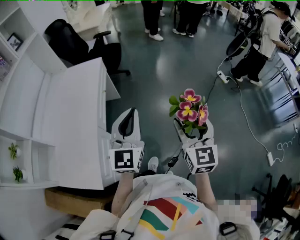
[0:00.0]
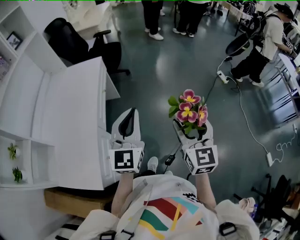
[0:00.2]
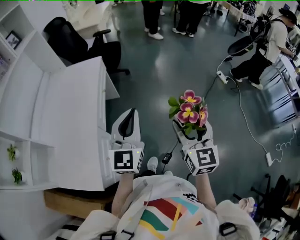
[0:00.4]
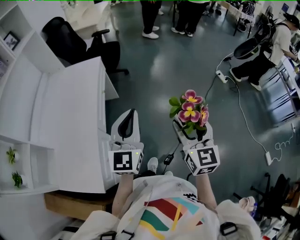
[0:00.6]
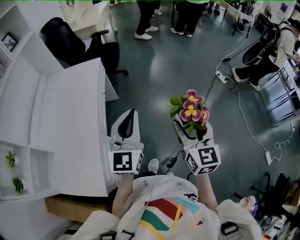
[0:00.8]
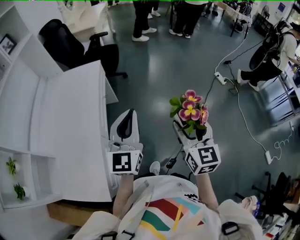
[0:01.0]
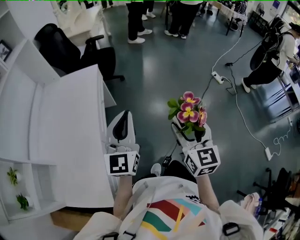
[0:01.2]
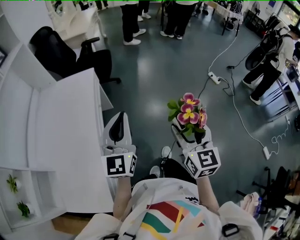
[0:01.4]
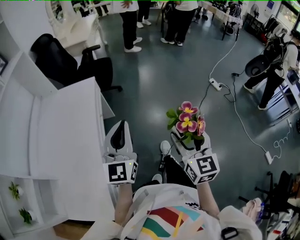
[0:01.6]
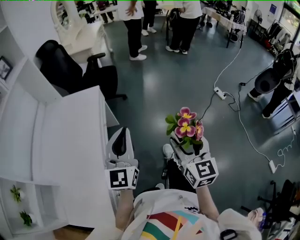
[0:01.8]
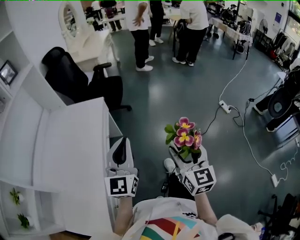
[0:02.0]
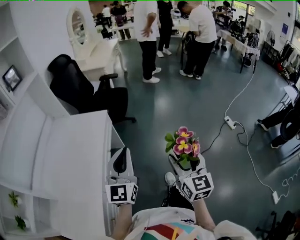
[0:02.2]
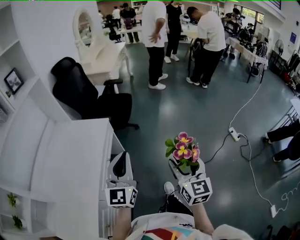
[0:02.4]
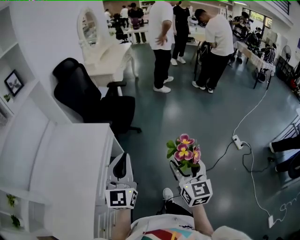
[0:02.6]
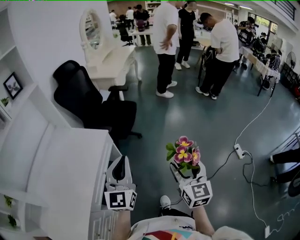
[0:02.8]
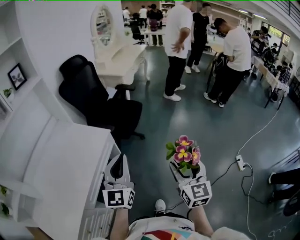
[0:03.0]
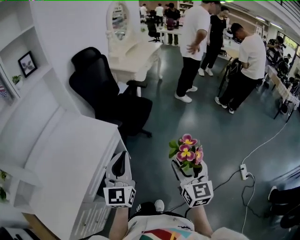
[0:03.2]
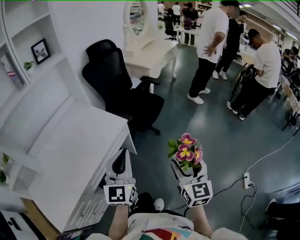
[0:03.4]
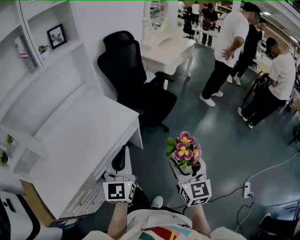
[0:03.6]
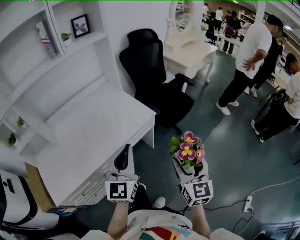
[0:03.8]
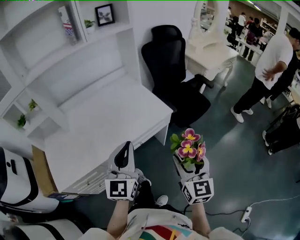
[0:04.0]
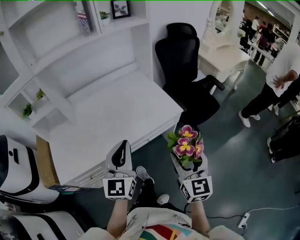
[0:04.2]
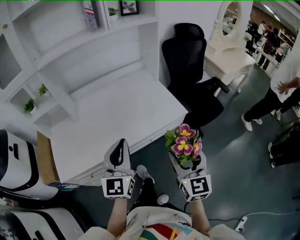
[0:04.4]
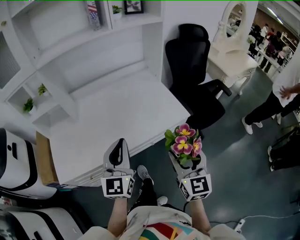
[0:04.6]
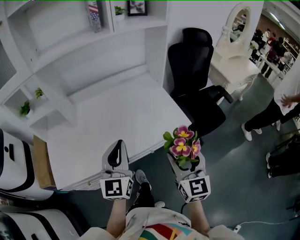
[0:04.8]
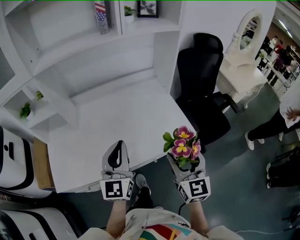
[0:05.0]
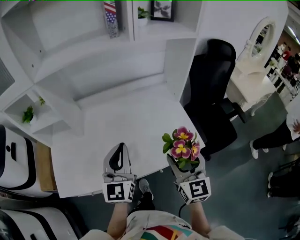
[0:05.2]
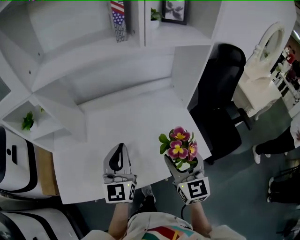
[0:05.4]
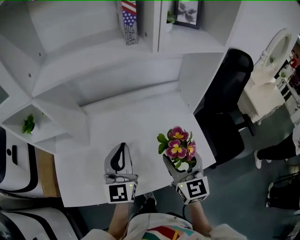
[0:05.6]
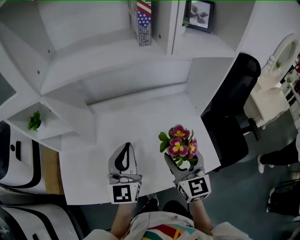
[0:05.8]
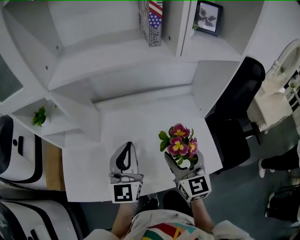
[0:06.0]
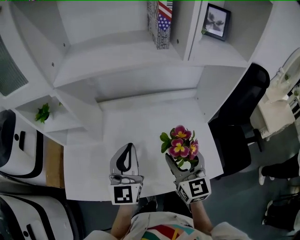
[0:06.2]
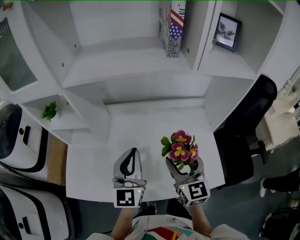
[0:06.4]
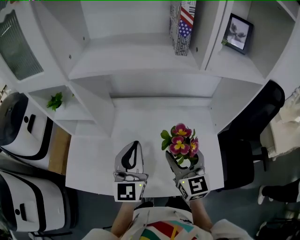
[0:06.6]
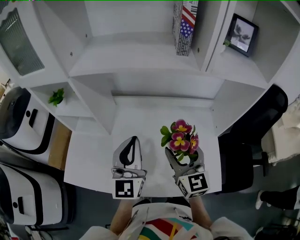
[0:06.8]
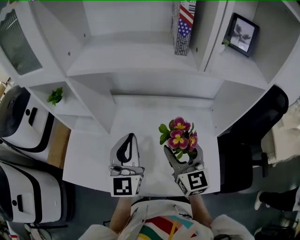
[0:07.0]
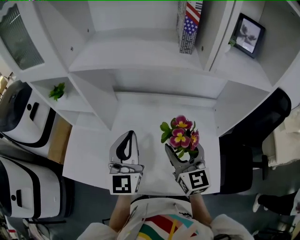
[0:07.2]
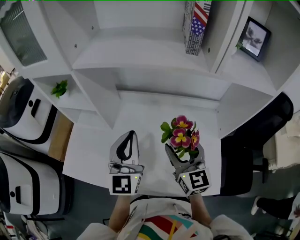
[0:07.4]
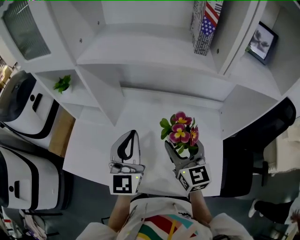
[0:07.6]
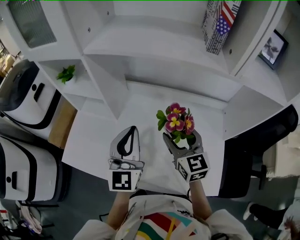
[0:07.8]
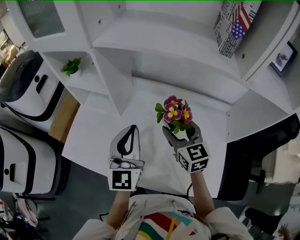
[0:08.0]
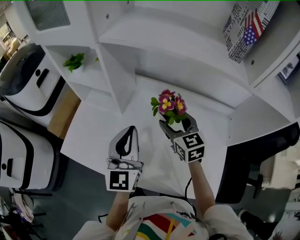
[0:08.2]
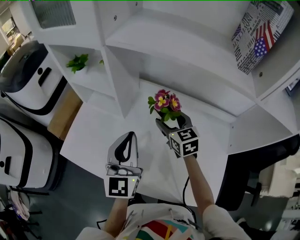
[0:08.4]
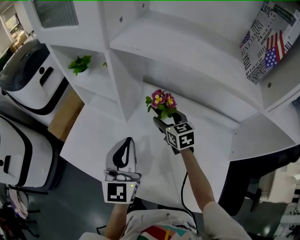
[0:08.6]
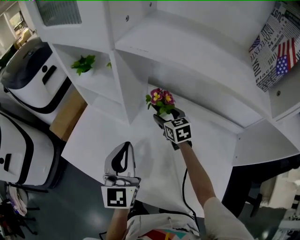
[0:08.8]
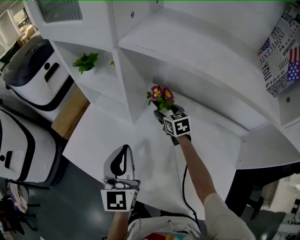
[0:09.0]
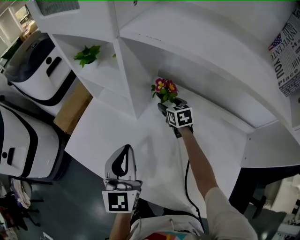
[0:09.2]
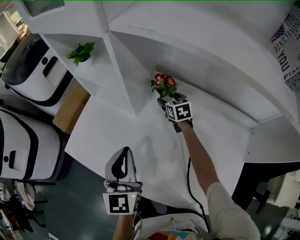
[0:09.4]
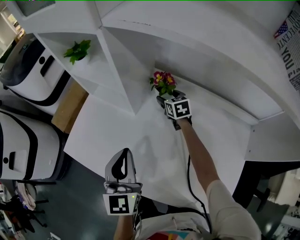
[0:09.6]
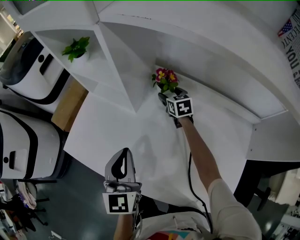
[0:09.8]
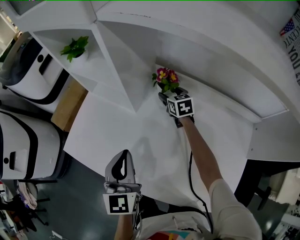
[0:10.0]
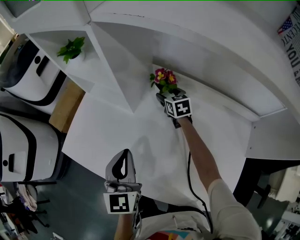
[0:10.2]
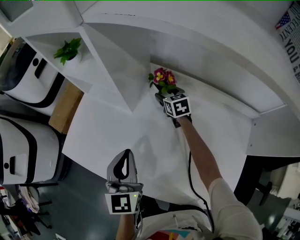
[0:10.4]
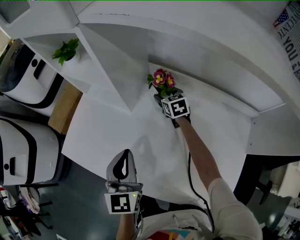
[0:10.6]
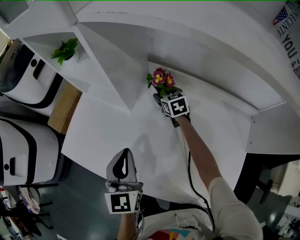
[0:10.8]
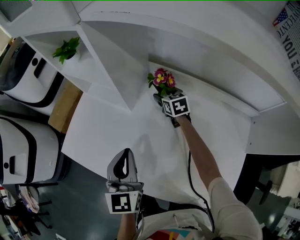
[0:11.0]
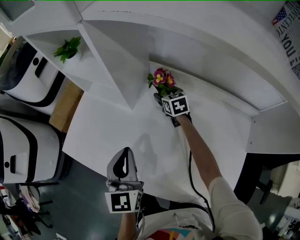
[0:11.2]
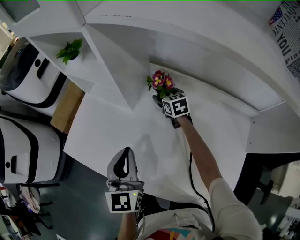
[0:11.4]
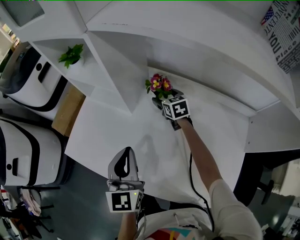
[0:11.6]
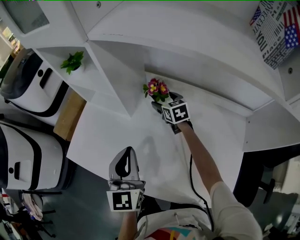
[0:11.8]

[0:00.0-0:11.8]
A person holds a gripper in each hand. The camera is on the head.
0:00.0 to 0:01.4: Both grippers travel together forward and to the left, roughly 10 cm.
0:01.4 to 0:03.0: Both grippers move forward, some 35 cm. The right gripper swivels some 20 degrees, while the left gripper changes its angle by some 30 degrees.
0:03.0 to 0:04.4: The left gripper ends up approximately 25 cm from where it was, and rotates roughly 50 degrees. The right gripper shifts by some 25 cm, and turns by some 50 degrees.
0:04.4 to 0:06.0: The grippers both shift forward and to the left by some 35 cm. The right gripper rotates roughly 20 degrees.
0:06.0 to 0:07.4: The right gripper goes about 10 cm forward.
0:07.4 to 0:08.8: The left gripper goes about 10 cm to the left and downward. Meanwhile the right gripper moves forward, downward and to the left, approximately 35 cm, and turns by roughly 40 degrees.
0:08.8 to 0:10.4: The left gripper goes approximately 10 cm downward. The right gripper shifts approximately 15 cm downward and forward.
0:10.4 to 0:11.8: The right gripper travels upward by approximately 5 cm.

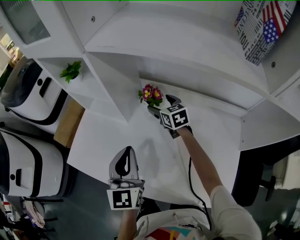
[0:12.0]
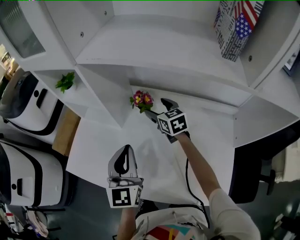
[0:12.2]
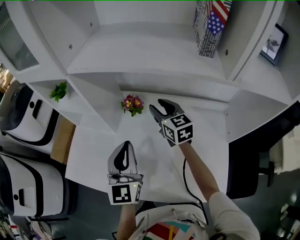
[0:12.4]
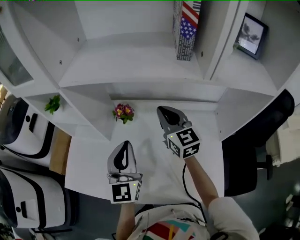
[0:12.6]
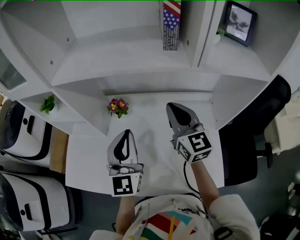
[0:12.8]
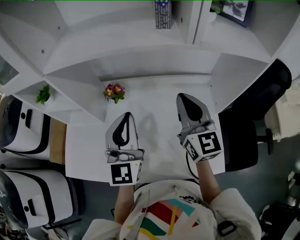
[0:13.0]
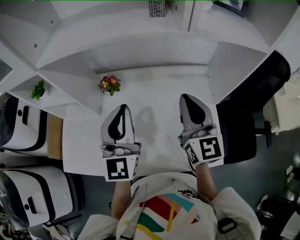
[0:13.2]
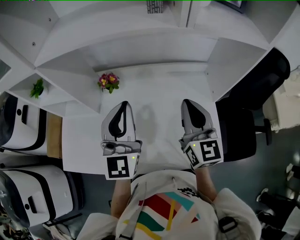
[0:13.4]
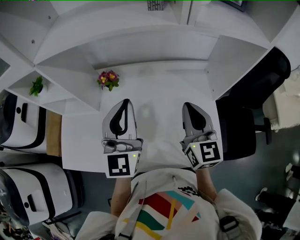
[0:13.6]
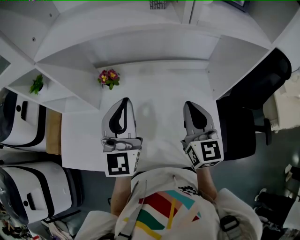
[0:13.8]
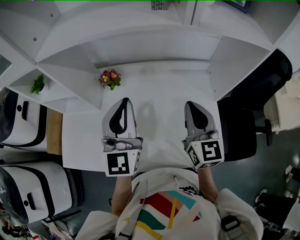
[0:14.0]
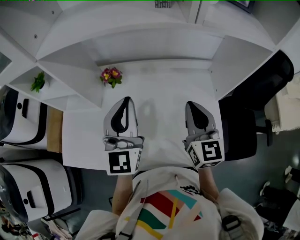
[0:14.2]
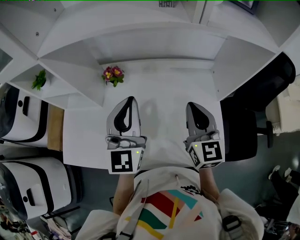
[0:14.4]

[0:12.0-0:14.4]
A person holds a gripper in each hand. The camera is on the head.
0:12.0 to 0:13.2: The right gripper shifts by roughly 40 cm, points its fingers some 30 degrees further upward, and closes up. Meanwhile the left gripper shifts by roughly 20 cm, and rotates about 30 degrees.
0:13.2 to 0:14.4: The right gripper shifts about 5 cm downward.

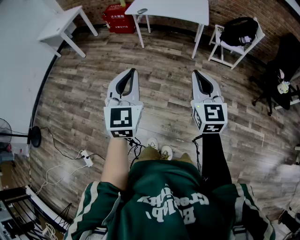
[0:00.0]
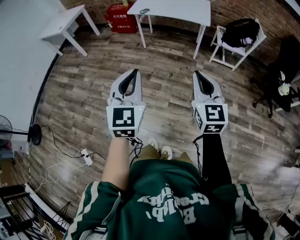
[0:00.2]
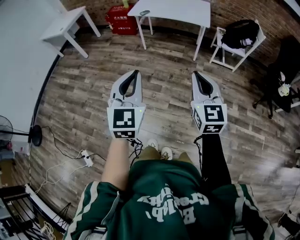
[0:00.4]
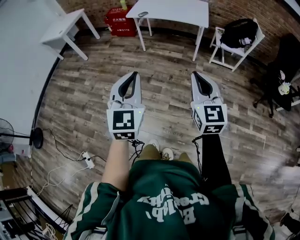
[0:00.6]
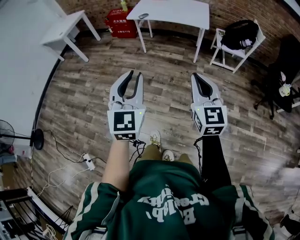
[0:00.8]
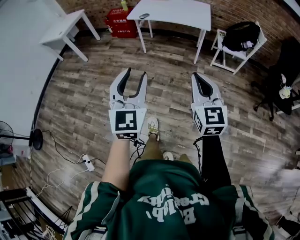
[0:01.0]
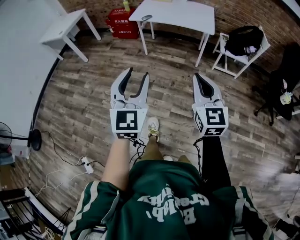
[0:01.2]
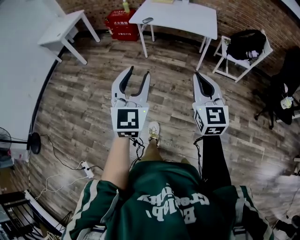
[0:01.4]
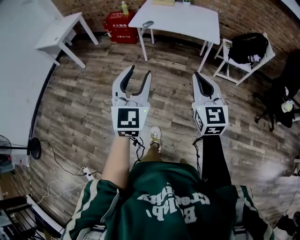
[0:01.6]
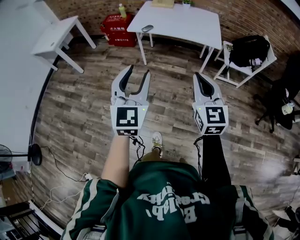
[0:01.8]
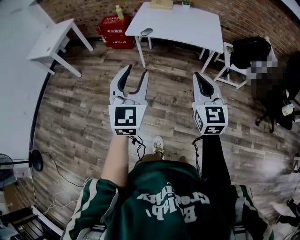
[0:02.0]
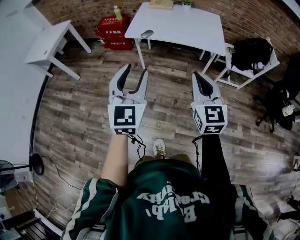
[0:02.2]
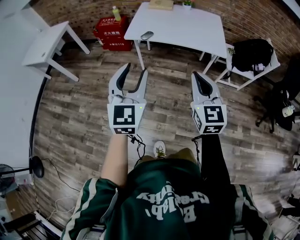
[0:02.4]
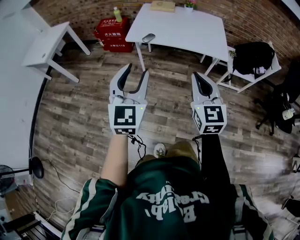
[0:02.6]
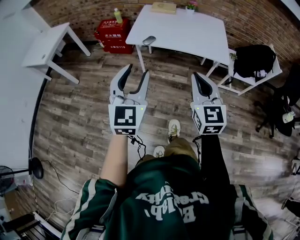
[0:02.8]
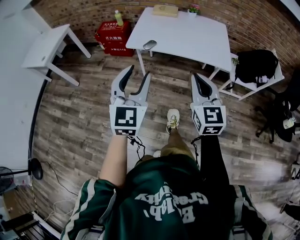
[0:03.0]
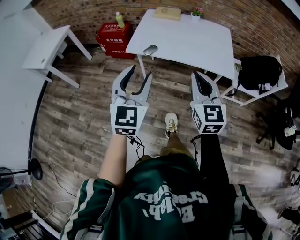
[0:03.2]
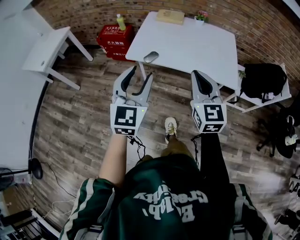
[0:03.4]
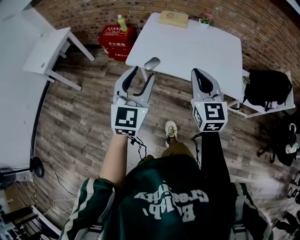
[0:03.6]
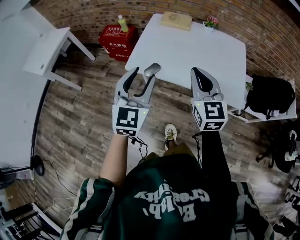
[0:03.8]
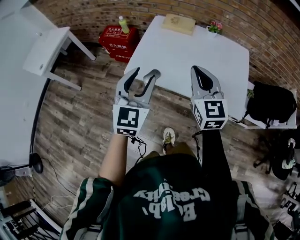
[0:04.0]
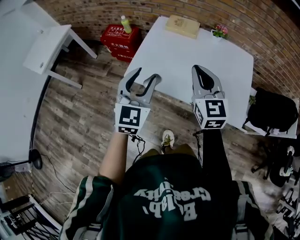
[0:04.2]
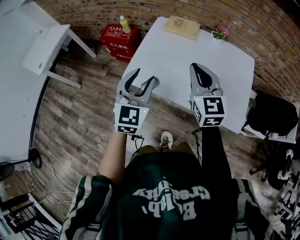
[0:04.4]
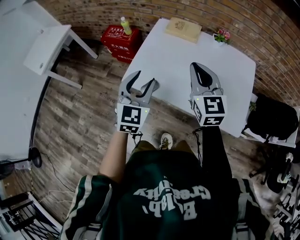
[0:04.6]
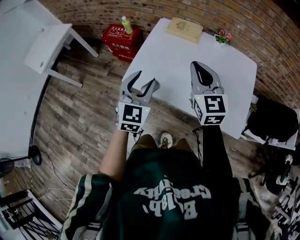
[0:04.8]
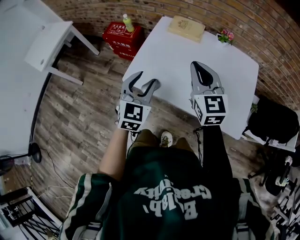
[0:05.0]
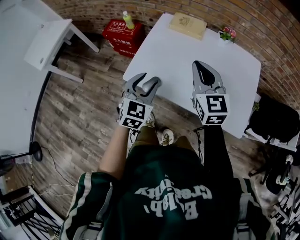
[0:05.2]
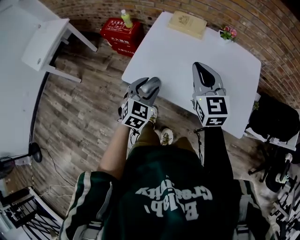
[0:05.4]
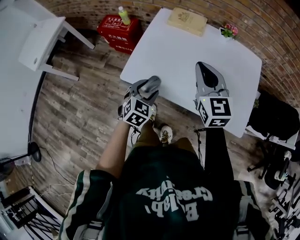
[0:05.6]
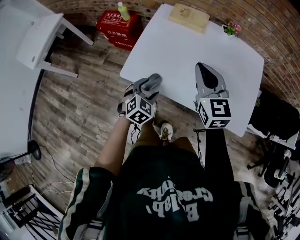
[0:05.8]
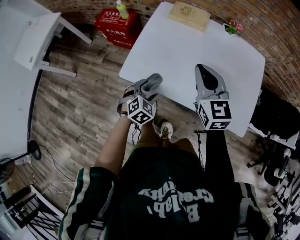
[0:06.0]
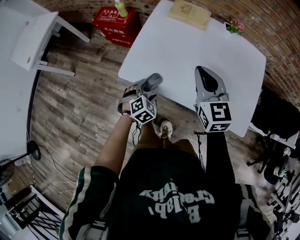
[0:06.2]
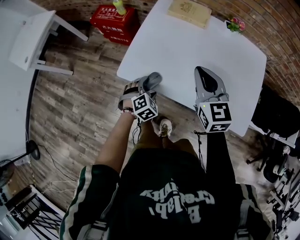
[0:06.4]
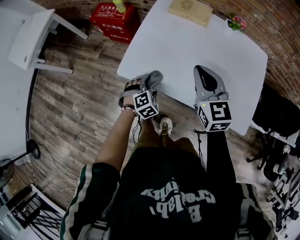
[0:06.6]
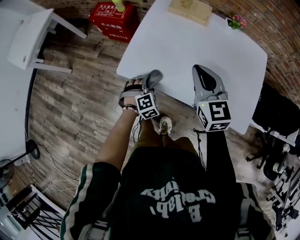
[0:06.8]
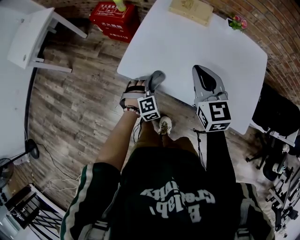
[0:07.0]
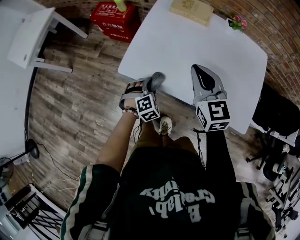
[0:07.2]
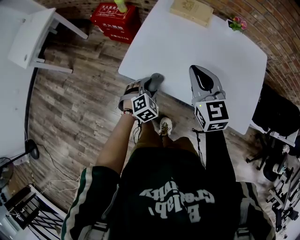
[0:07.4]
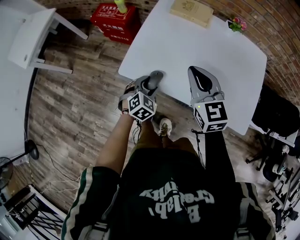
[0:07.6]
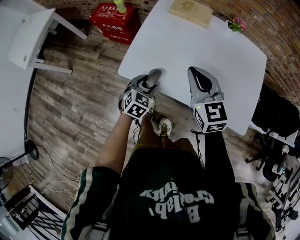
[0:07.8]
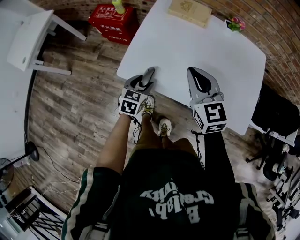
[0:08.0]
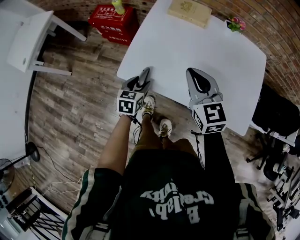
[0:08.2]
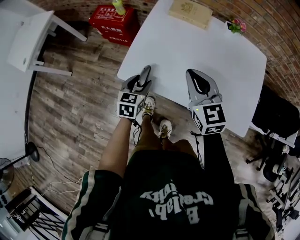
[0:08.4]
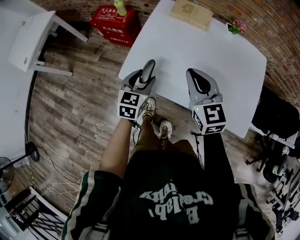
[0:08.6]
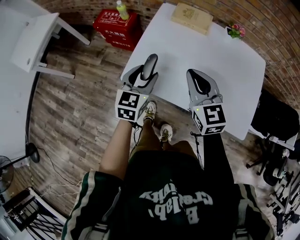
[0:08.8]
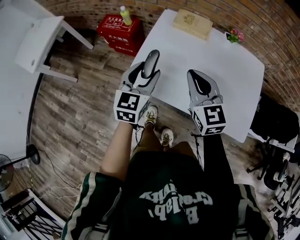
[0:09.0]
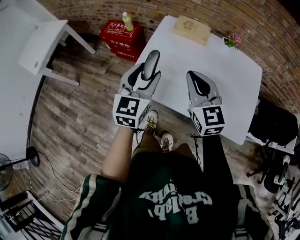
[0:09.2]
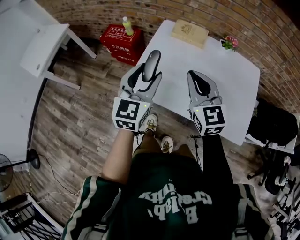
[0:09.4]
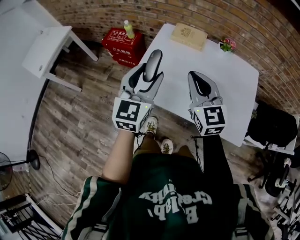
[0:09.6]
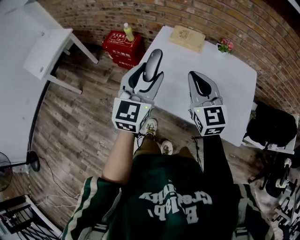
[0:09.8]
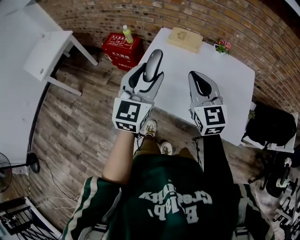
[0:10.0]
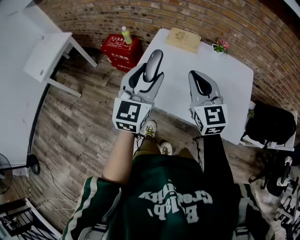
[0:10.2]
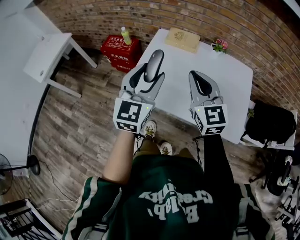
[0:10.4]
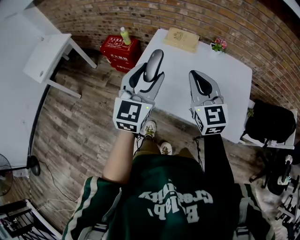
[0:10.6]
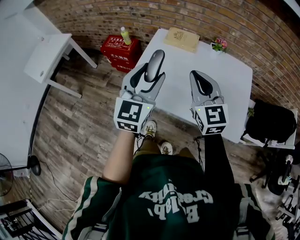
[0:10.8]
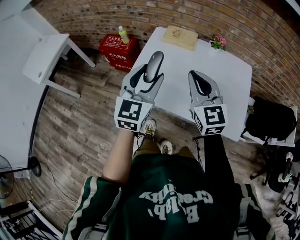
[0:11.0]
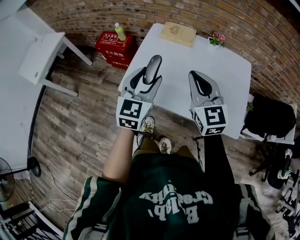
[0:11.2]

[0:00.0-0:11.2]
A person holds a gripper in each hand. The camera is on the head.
0:00.0 to 0:01.6: The grippers both shift forward by some 20 cm. The left gripper opens.
0:01.6 to 0:03.2: The two grippers go some 35 cm forward.
0:03.2 to 0:04.8: Both grippers move forward, approximately 40 cm.
0:04.8 to 0:06.4: The right gripper shifts approximately 10 cm downward. The left gripper is displaced downward by about 30 cm, tips its fingers downward by approximately 40 degrees, and opens its fingers.
0:06.4 to 0:08.0: The left gripper changes place by approximately 5 cm, and rolls counterclockwise, seen from behind, by approximately 40 degrees.
0:08.0 to 0:09.6: The right gripper travels upward by some 10 cm. The left gripper heads upward, covering some 30 cm, and angles its fingers upward, by some 30 degrees.
0:09.6 to 0:11.2: The left gripper shifts by about 5 cm. Meanwhile the right gripper changes place by some 5 cm.
